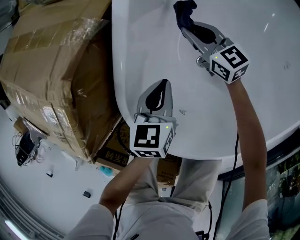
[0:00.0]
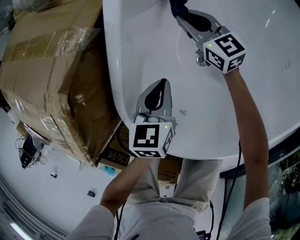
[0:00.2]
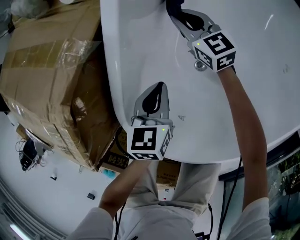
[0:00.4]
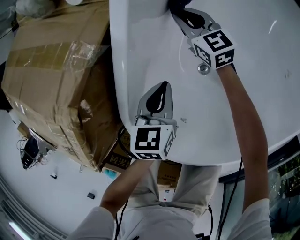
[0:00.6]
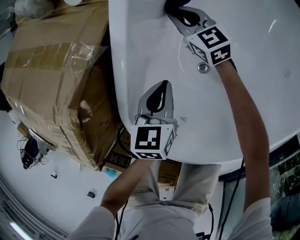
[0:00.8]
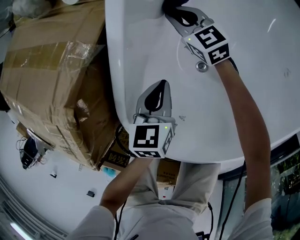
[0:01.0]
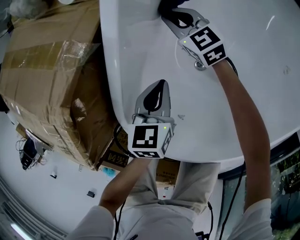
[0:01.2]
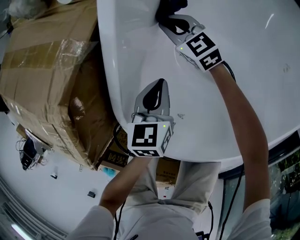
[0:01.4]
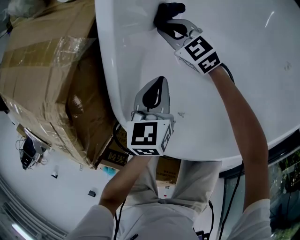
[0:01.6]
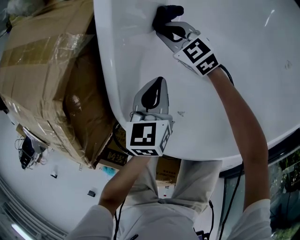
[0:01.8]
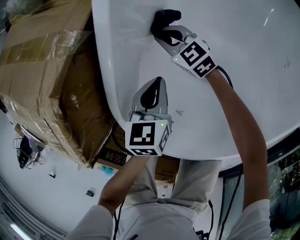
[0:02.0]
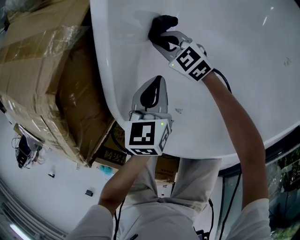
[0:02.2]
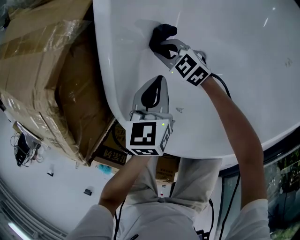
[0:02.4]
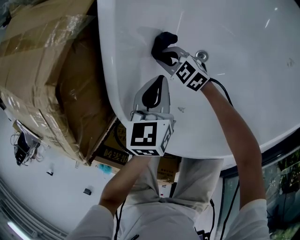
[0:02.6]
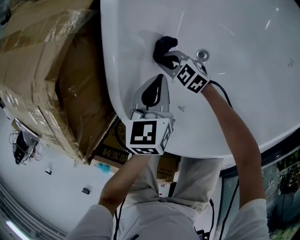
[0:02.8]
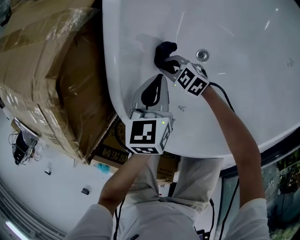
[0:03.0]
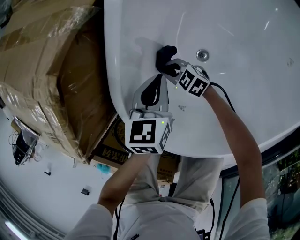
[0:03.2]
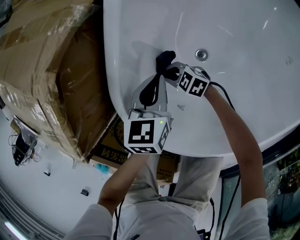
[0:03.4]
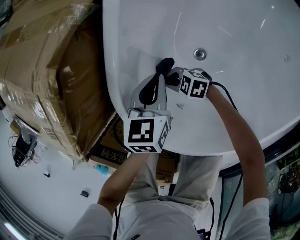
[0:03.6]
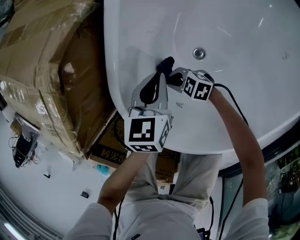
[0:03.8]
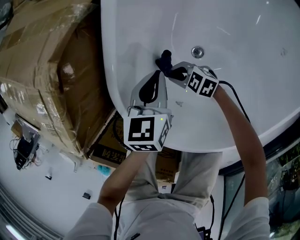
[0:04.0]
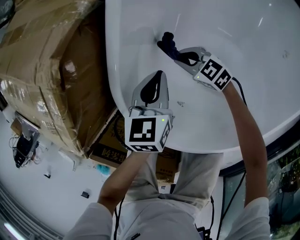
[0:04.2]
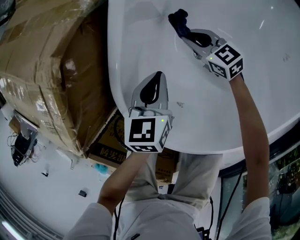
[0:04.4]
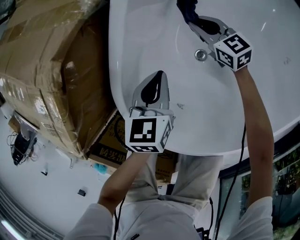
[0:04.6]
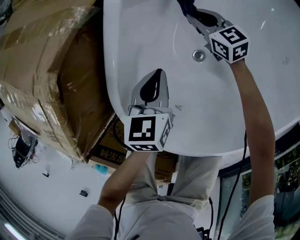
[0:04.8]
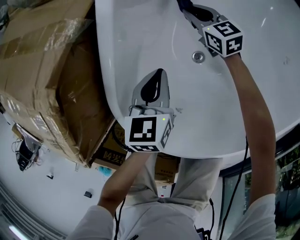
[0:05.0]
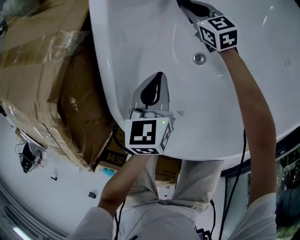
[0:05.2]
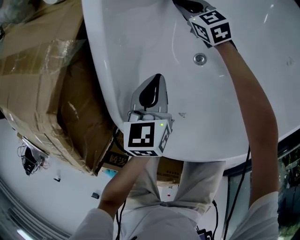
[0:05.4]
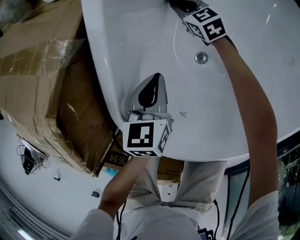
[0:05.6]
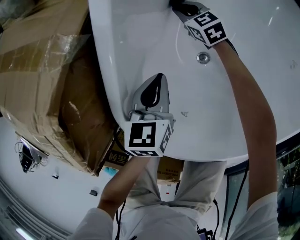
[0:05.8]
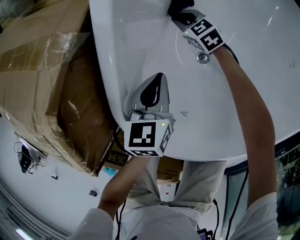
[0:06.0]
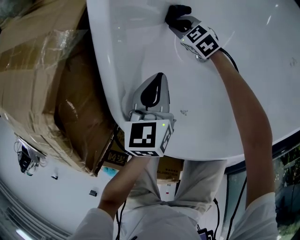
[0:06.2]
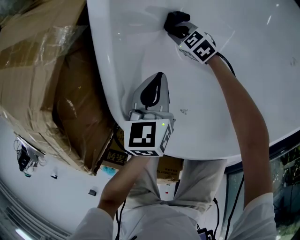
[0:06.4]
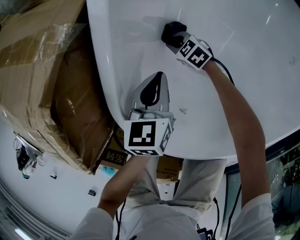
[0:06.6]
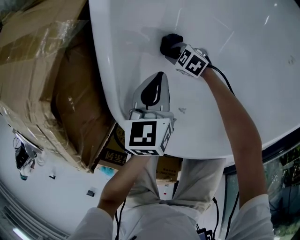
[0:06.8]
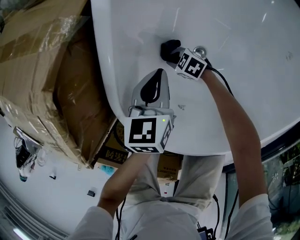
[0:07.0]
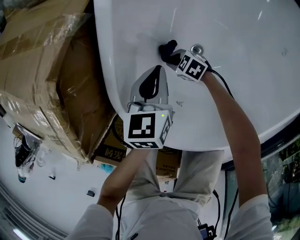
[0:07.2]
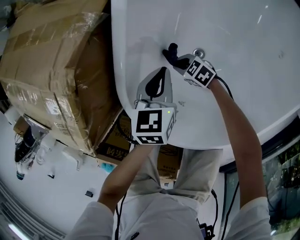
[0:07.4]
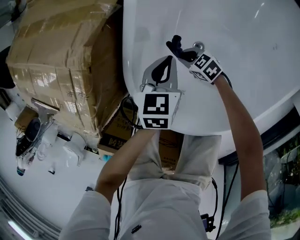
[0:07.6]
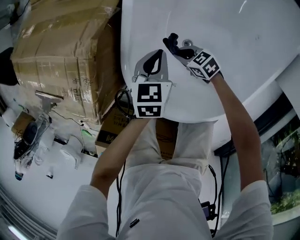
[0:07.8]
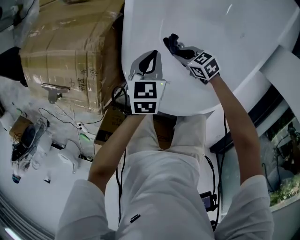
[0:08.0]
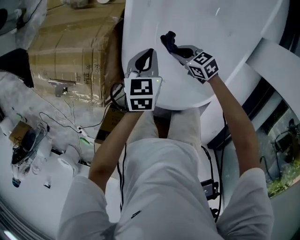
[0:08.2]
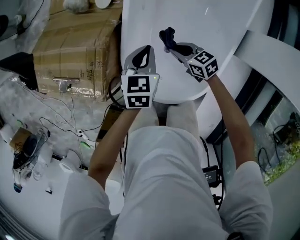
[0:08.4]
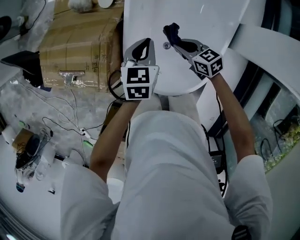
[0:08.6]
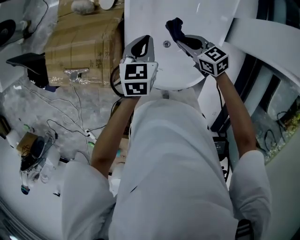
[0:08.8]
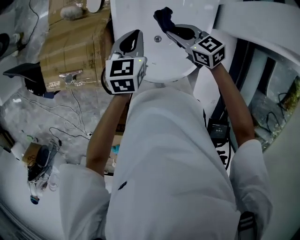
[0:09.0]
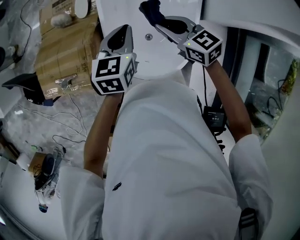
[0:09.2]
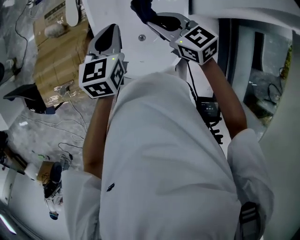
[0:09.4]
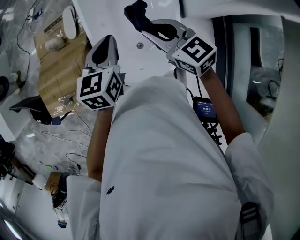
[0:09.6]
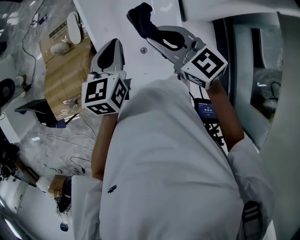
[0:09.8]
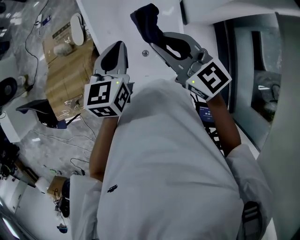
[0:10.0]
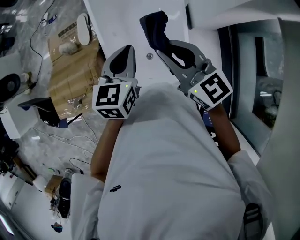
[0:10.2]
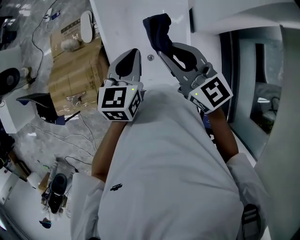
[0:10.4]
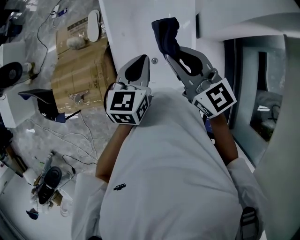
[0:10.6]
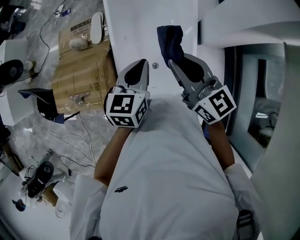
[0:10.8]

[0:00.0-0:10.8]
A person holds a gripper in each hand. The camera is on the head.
0:00.0 to 0:01.6: The right gripper travels to the left by roughly 5 cm, and moves about 10 cm forward and comes back.
0:01.6 to 0:03.0: The right gripper is displaced backward and to the left by some 20 cm, and turns by some 20 degrees.
0:03.0 to 0:04.6: The right gripper moves roughly 25 cm, and swivels roughly 30 degrees.
0:04.6 to 0:06.2: The right gripper goes approximately 15 cm downward and to the left.
0:06.2 to 0:07.8: The left gripper travels upward by roughly 15 cm. The right gripper is displaced upward by about 20 cm.
0:07.8 to 0:09.2: The grippers both shift upward by roughly 50 cm. The left gripper swivels roughly 20 degrees. Meanwhile the right gripper turns by approximately 40 degrees.
0:09.2 to 0:10.8: The left gripper travels upward and backward by approximately 15 cm, while the right gripper is displaced upward by about 20 cm, and changes its angle by about 30 degrees.

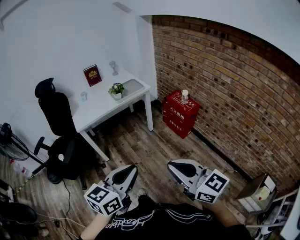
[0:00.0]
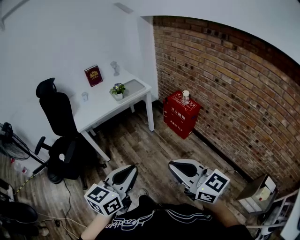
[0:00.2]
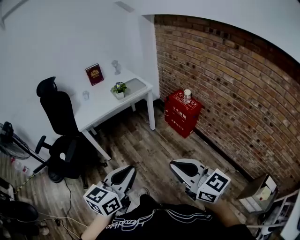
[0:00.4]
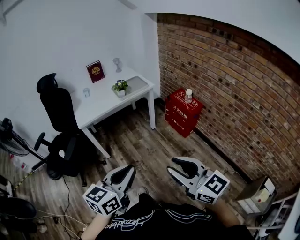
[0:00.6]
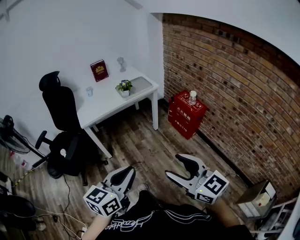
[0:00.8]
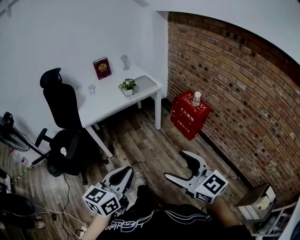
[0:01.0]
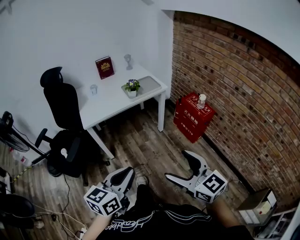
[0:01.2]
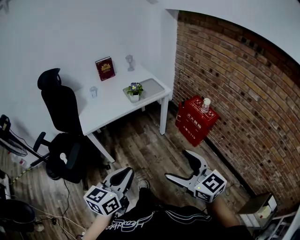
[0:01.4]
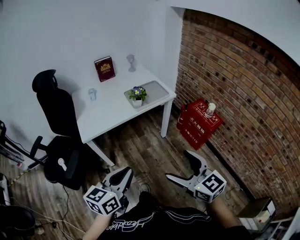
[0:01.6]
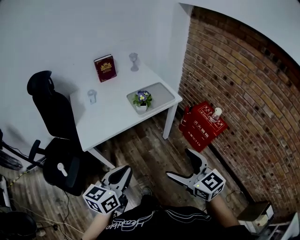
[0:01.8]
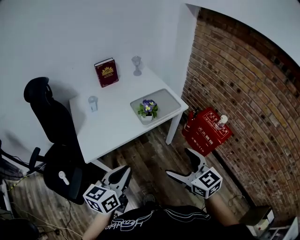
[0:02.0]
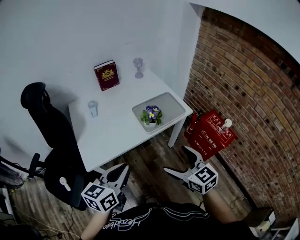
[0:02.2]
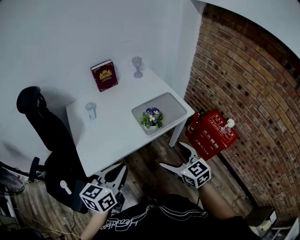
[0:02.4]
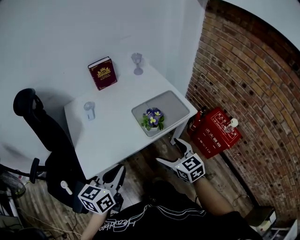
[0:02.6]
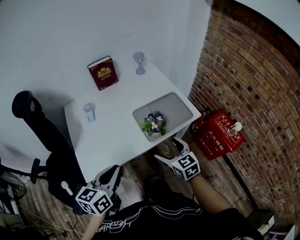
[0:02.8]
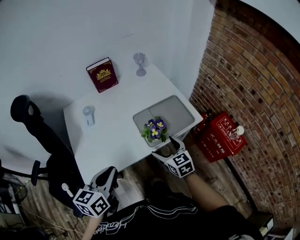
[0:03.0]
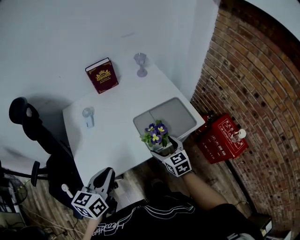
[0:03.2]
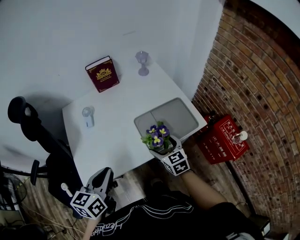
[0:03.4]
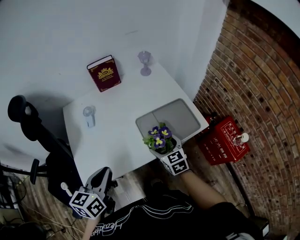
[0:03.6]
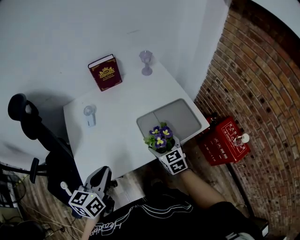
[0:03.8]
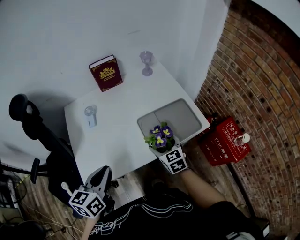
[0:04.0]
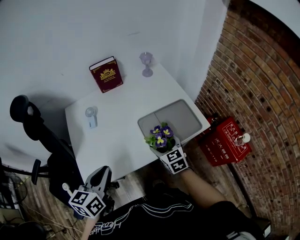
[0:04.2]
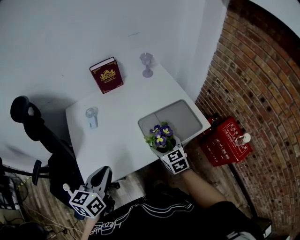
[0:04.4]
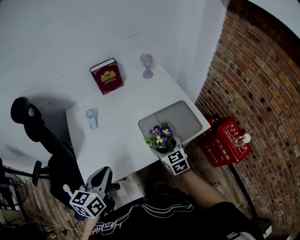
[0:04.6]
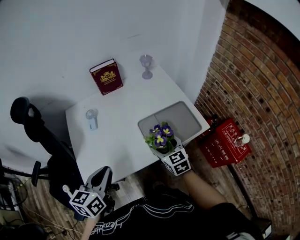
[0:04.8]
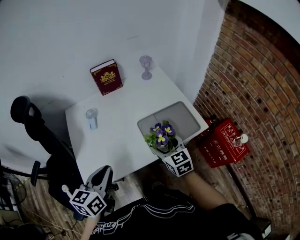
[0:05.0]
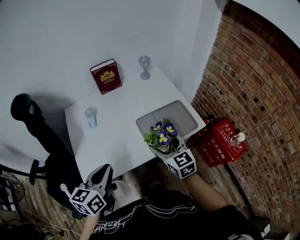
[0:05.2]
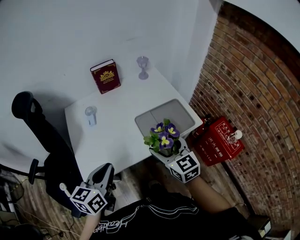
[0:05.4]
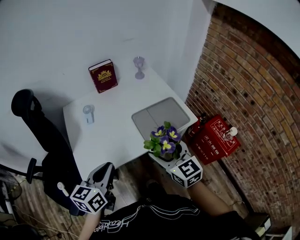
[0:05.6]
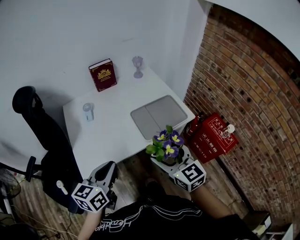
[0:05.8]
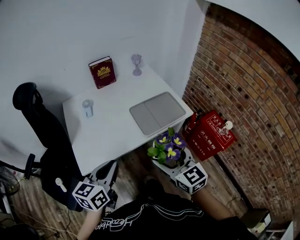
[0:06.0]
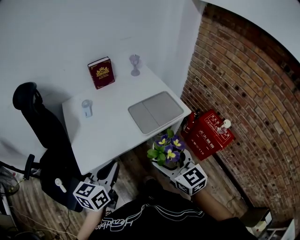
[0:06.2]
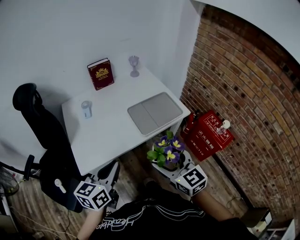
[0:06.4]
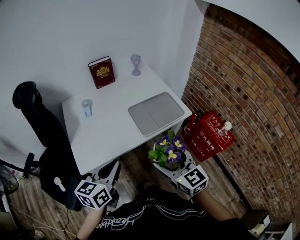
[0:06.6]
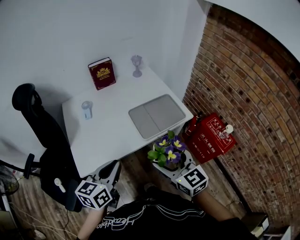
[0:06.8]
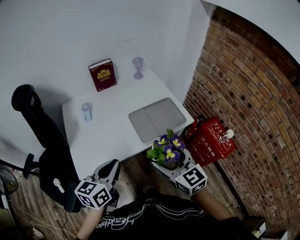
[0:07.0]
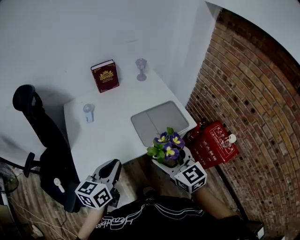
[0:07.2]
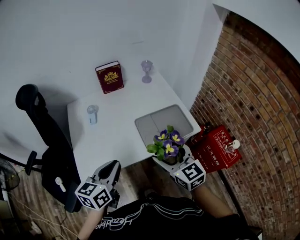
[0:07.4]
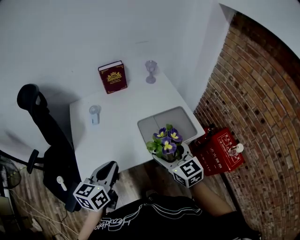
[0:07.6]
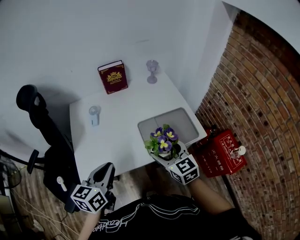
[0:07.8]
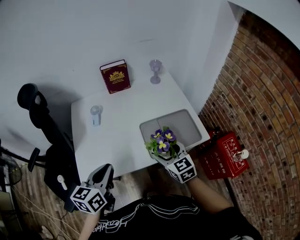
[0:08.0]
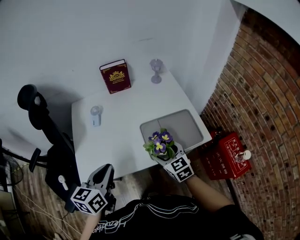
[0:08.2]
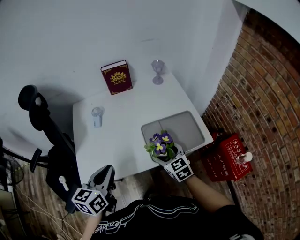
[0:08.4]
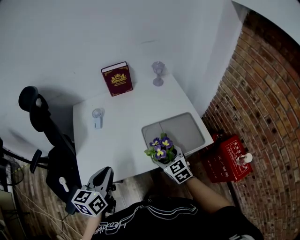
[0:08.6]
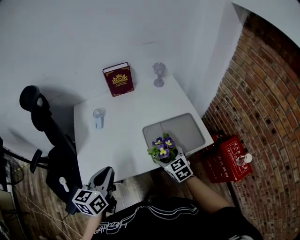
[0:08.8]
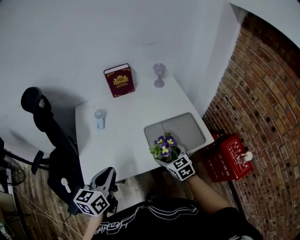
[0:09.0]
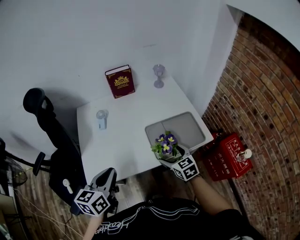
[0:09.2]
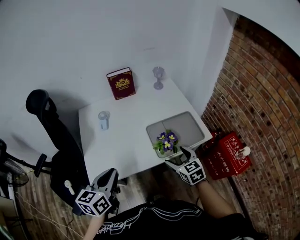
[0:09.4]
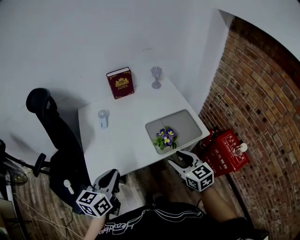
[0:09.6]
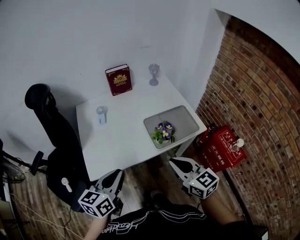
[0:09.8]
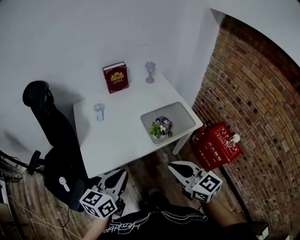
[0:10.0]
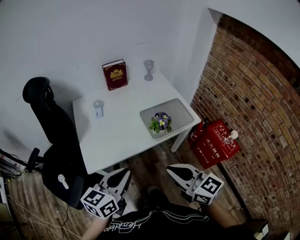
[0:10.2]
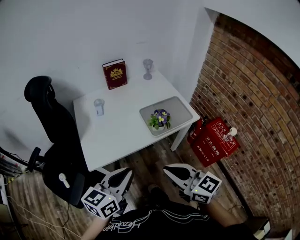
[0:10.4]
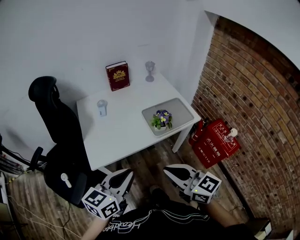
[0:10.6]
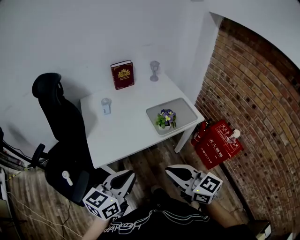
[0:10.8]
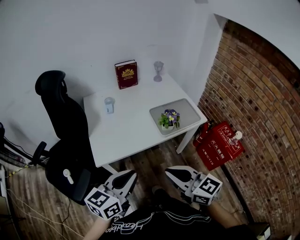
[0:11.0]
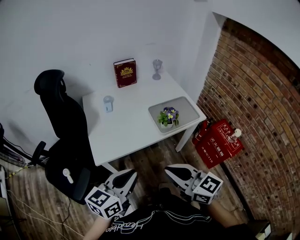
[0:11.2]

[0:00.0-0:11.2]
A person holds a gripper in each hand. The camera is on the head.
0:00.0 to 0:01.6: The right gripper goes some 25 cm forward, and opens up. The left gripper heads forward and to the left, covering about 25 cm.
0:01.6 to 0:03.2: The left gripper moves forward, roughly 35 cm; the right gripper shifts approximately 50 cm forward and downward.
0:03.2 to 0:04.8: The grippers stay close to where they were, moving slightly.
0:04.8 to 0:06.4: The right gripper moves backward and upward, about 25 cm; the left gripper moves backward and to the right, roughly 10 cm.
0:06.4 to 0:08.0: The right gripper shifts about 25 cm forward and downward; the left gripper goes some 10 cm forward.
0:08.0 to 0:09.6: The right gripper travels backward by some 10 cm. Meanwhile the left gripper changes place by approximately 5 cm.
0:09.6 to 0:11.2: The left gripper heads backward, covering roughly 15 cm. The right gripper goes roughly 25 cm backward, to the left and upward, swivels approximately 20 degrees, and closes.

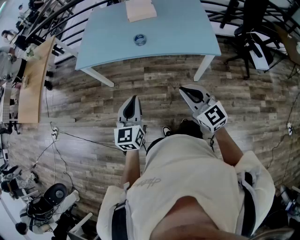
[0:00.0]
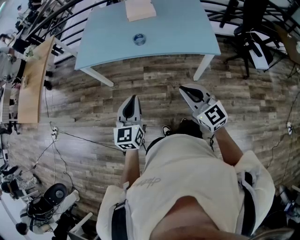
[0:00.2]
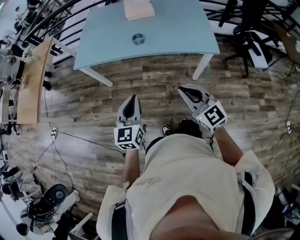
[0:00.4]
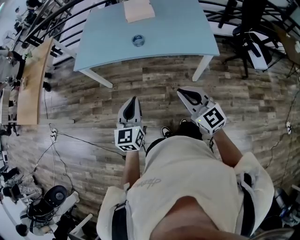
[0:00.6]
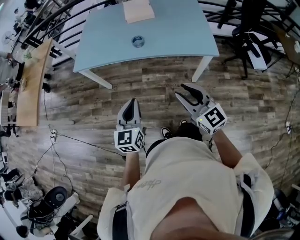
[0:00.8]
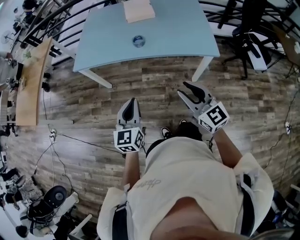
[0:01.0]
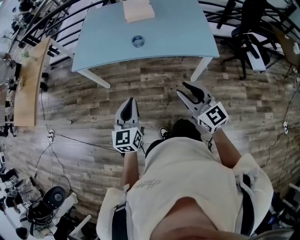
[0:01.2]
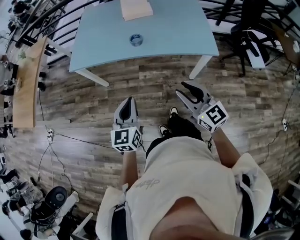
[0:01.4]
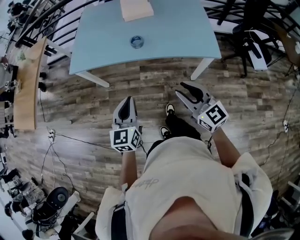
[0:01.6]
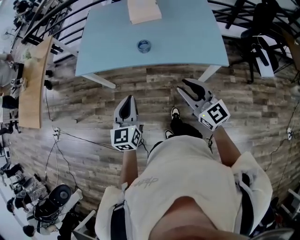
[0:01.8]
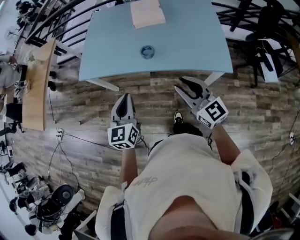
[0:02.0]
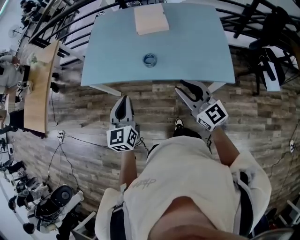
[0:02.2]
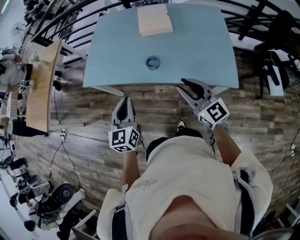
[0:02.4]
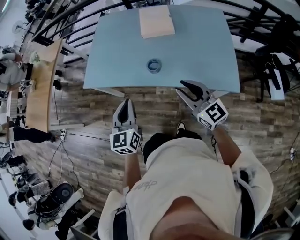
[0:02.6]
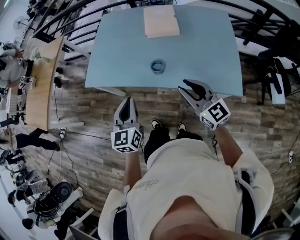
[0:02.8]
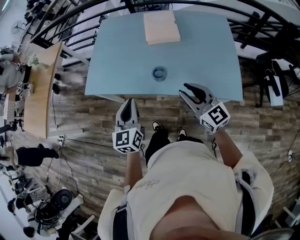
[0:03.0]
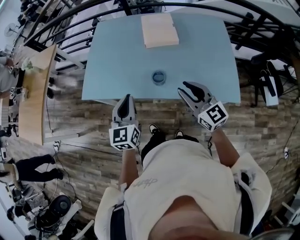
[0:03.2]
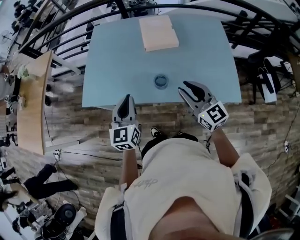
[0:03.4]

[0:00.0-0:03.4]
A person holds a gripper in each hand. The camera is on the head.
0:00.0 to 0:01.6: Both grippers move forward, approximately 5 cm. The right gripper opens up.
0:01.6 to 0:03.4: The grippers both shift forward by about 30 cm.
